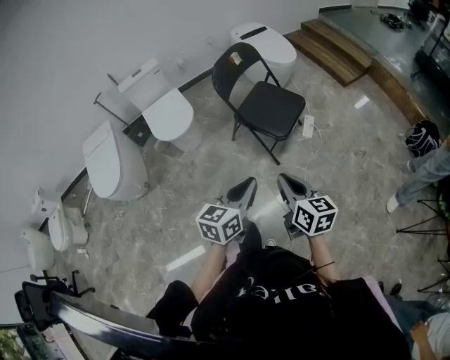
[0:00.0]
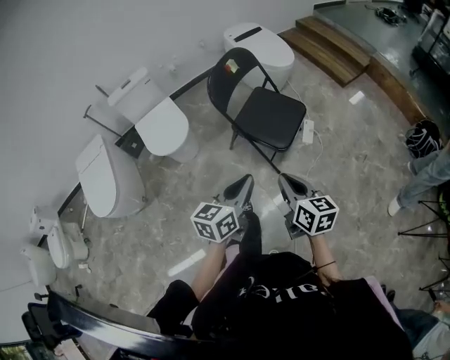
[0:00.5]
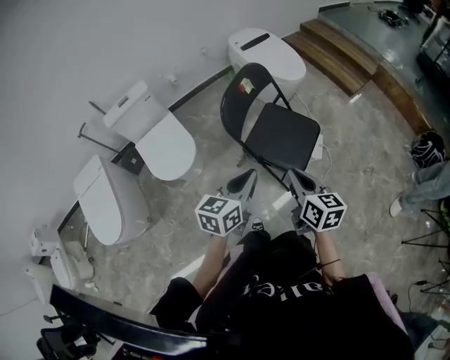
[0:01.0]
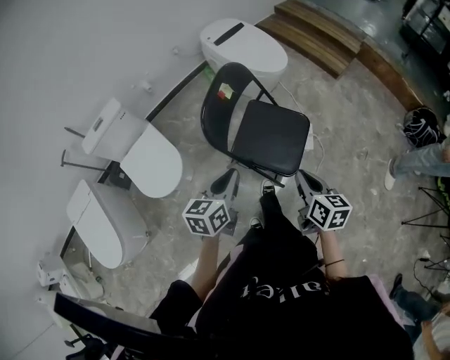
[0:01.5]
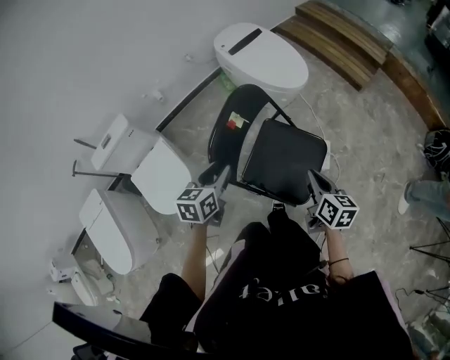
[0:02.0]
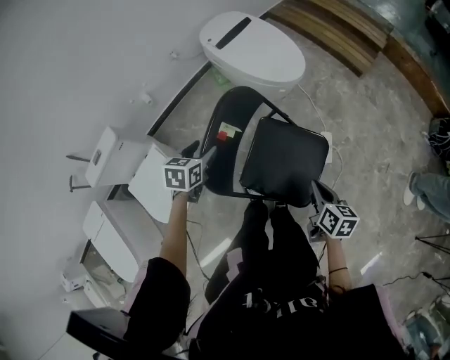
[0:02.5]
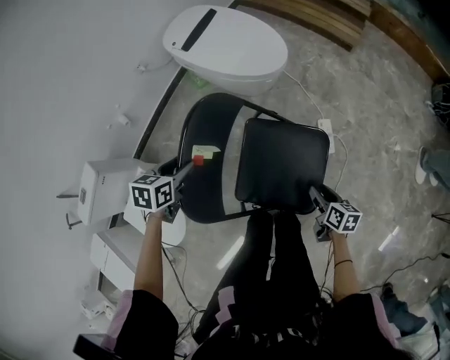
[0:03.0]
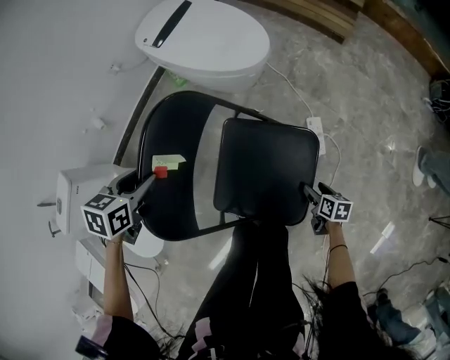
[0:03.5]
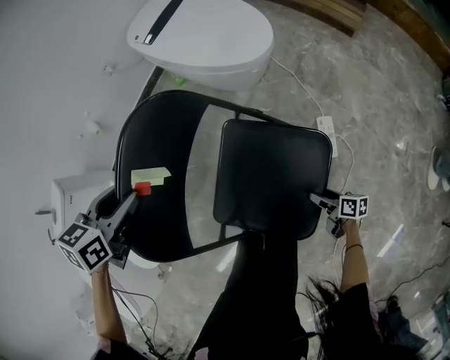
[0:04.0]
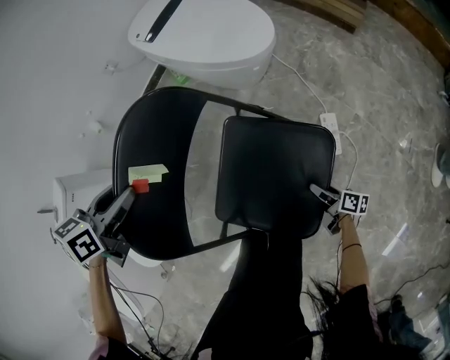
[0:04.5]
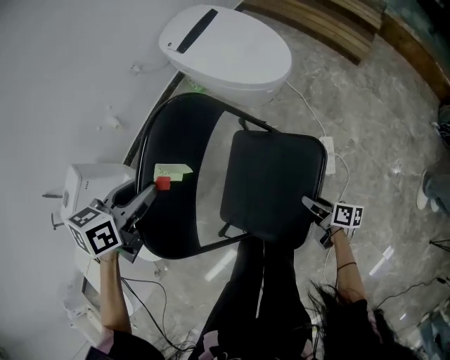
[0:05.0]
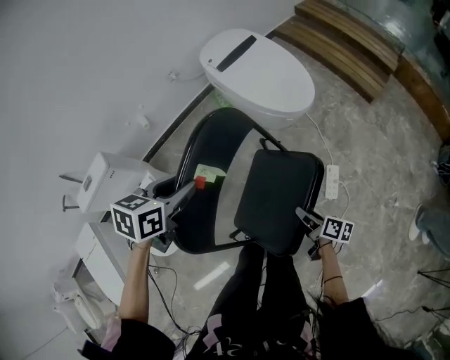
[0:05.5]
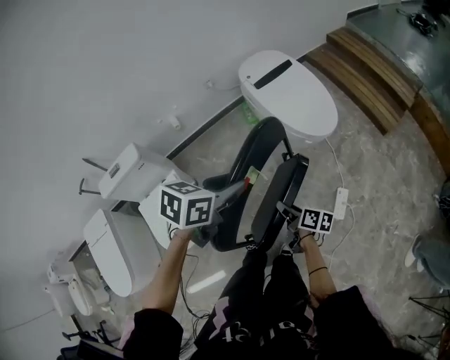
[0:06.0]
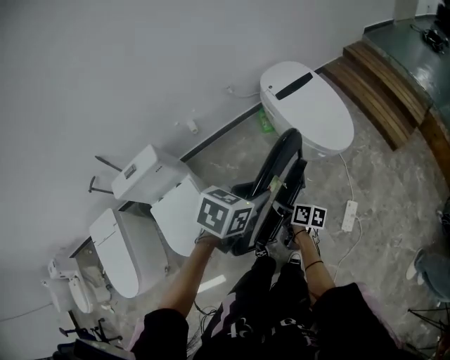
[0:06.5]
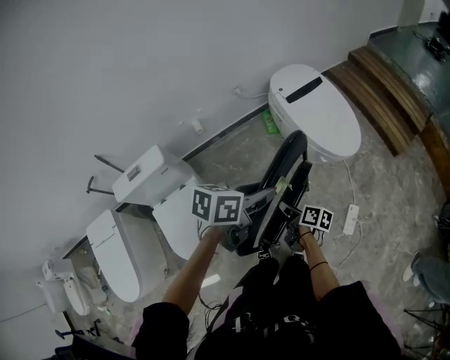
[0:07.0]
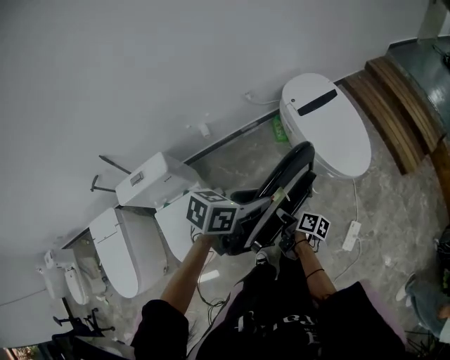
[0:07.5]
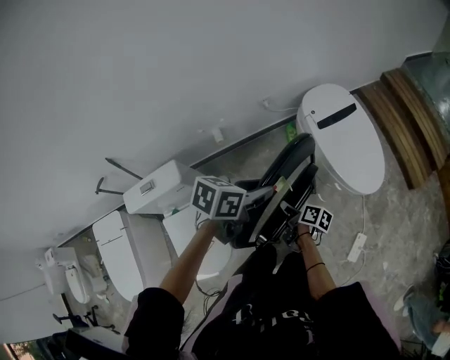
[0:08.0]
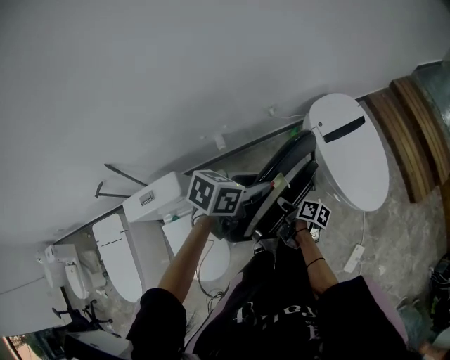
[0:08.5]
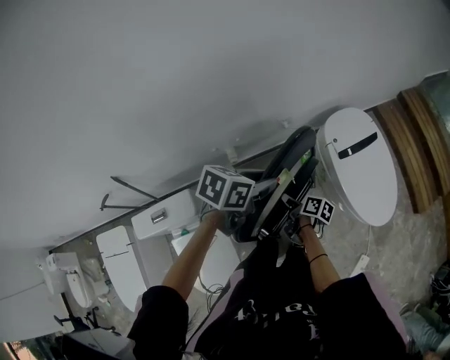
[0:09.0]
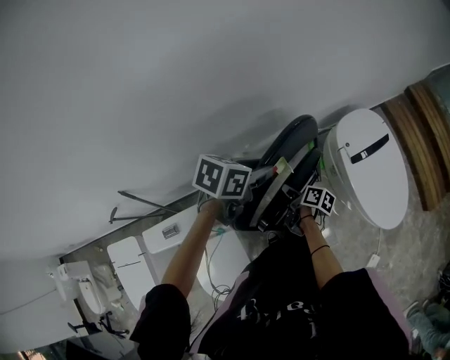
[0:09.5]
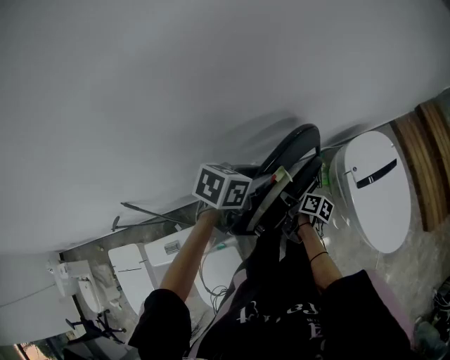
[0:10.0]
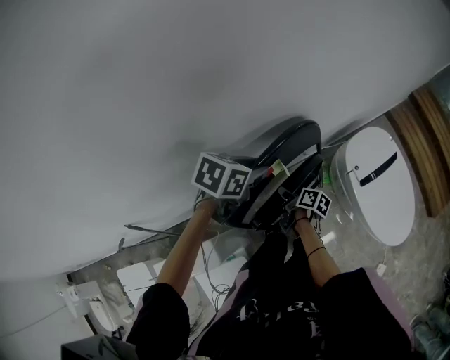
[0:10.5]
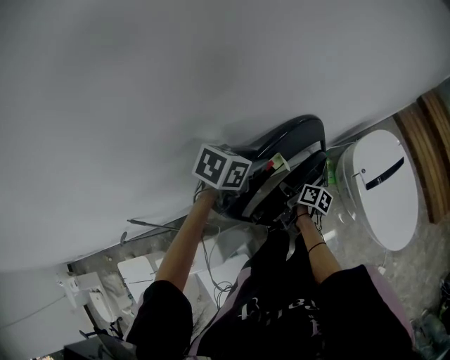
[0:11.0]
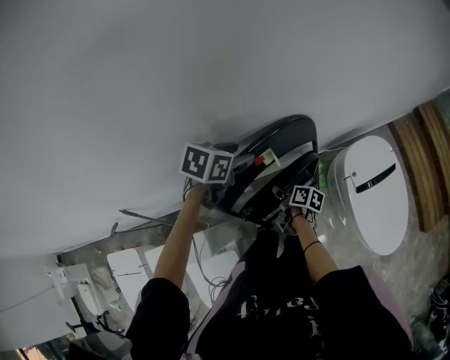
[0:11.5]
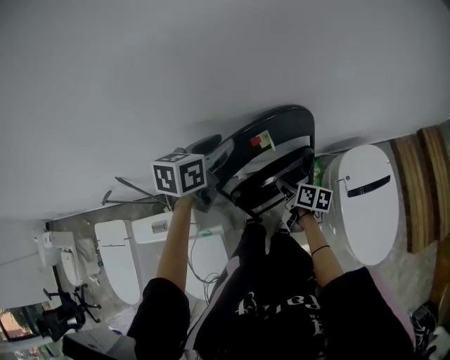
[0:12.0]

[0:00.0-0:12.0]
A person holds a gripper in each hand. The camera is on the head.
0:00.0 to 0:02.0: The pair of grippers is taken forward, roughly 60 cm. The right gripper rotates about 20 degrees. Meanwhile the left gripper opens.
0:02.0 to 0:04.0: The left gripper heads forward and downward, covering some 25 cm, and turns by some 30 degrees. The right gripper travels downward by approximately 50 cm, rotates roughly 40 degrees, and opens up.
0:04.0 to 0:06.0: The left gripper shifts roughly 20 cm upward. Meanwhile the right gripper goes some 40 cm upward and to the left, and closes.
0:06.0 to 0:08.0: The right gripper is displaced to the left and forward by some 30 cm. The left gripper travels forward and to the left by roughly 30 cm.
0:08.0 to 0:10.0: Both grippers are carried forward and to the left, some 40 cm.
0:10.0 to 0:12.0: The right gripper shifts about 5 cm upward, and rotates approximately 30 degrees. The left gripper moves about 10 cm, and changes its angle by about 30 degrees.

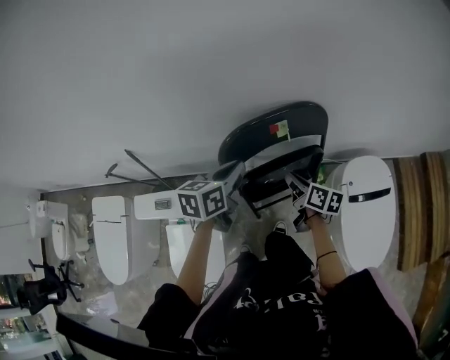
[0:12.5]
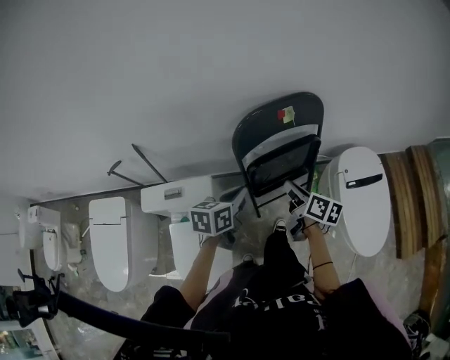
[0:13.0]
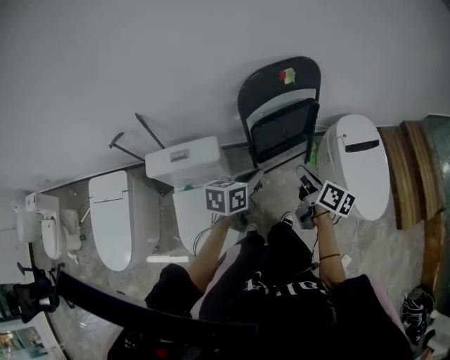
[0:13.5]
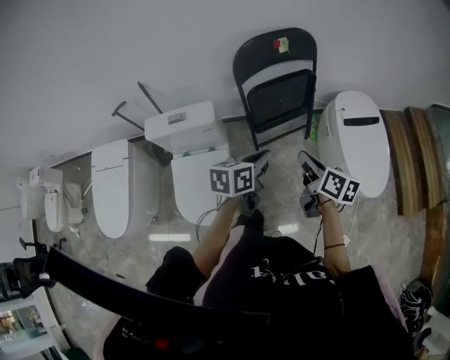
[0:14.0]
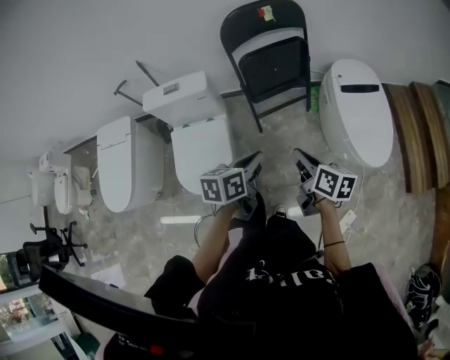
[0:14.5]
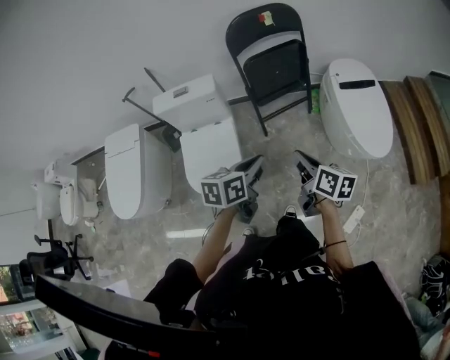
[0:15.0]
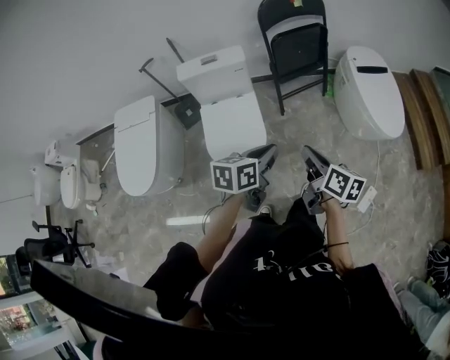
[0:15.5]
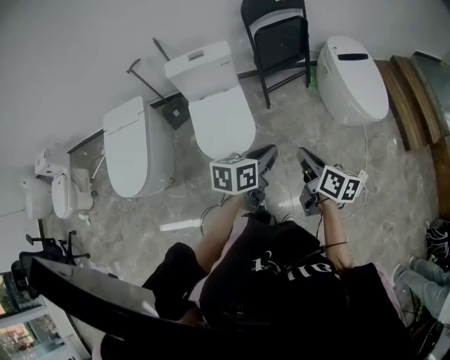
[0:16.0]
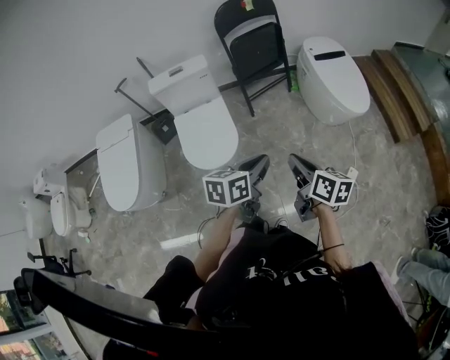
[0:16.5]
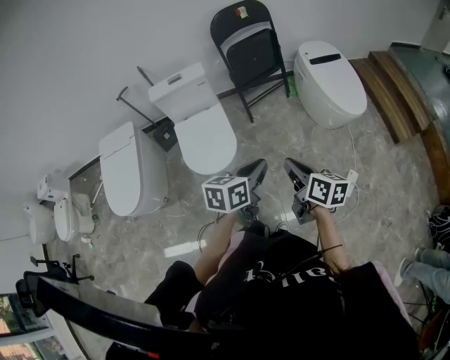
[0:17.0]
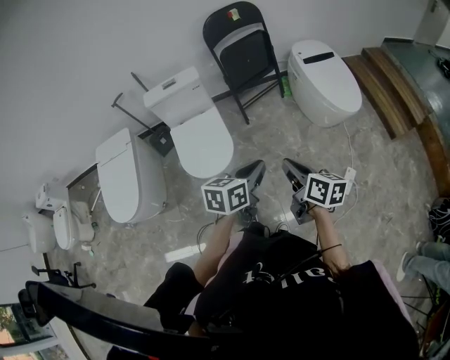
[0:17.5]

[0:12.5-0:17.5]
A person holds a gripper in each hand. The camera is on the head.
0:12.5 to 0:15.0: The pair of grippers is taken backward, roughly 60 cm.
0:15.0 to 0:17.5: Both grippers move backward, some 25 cm.

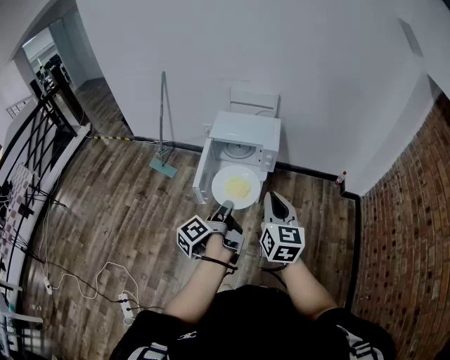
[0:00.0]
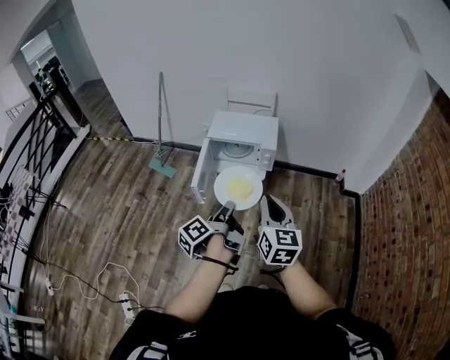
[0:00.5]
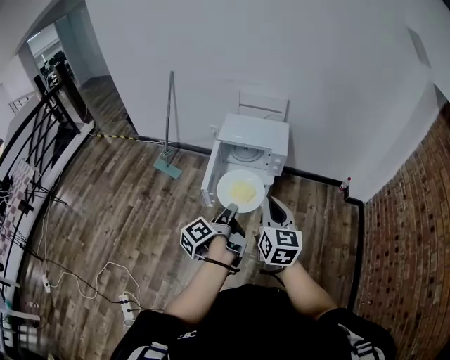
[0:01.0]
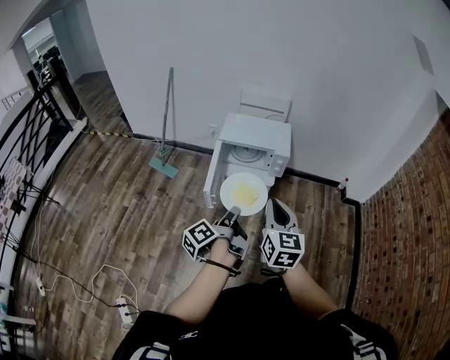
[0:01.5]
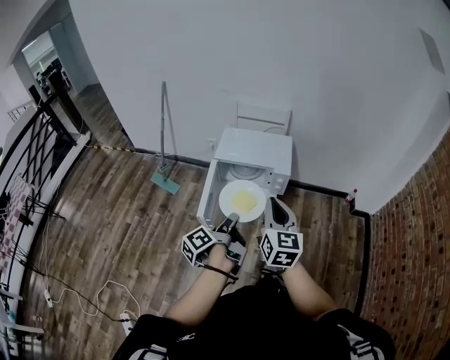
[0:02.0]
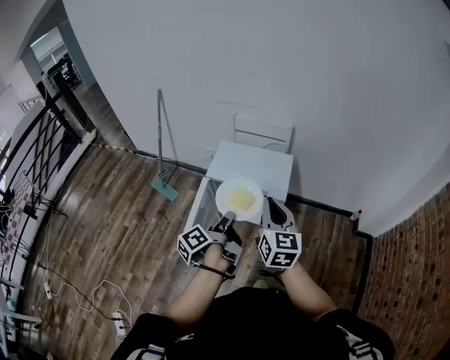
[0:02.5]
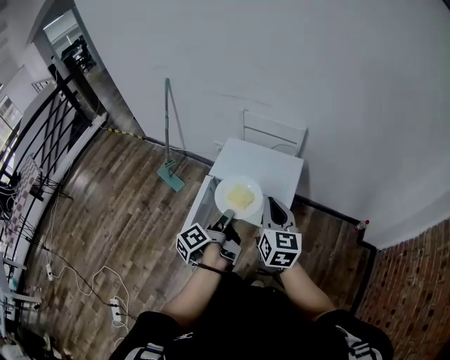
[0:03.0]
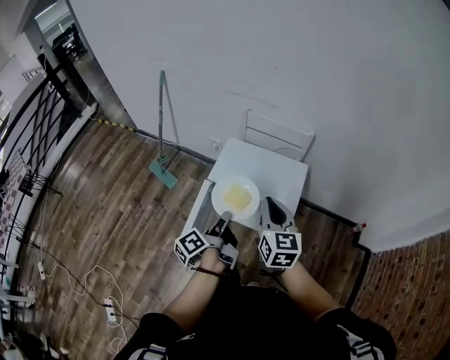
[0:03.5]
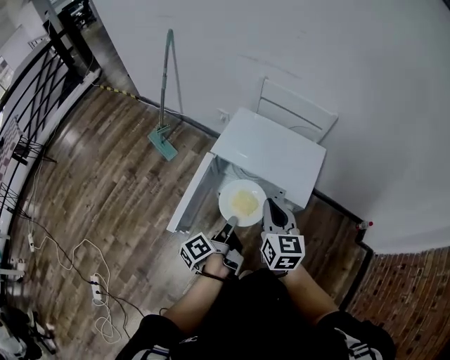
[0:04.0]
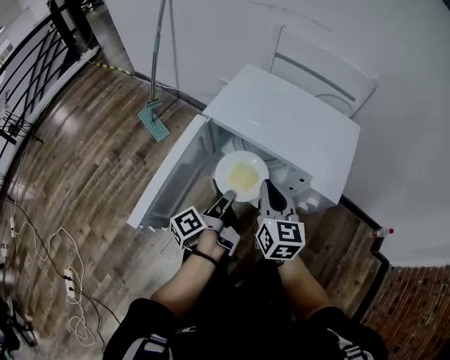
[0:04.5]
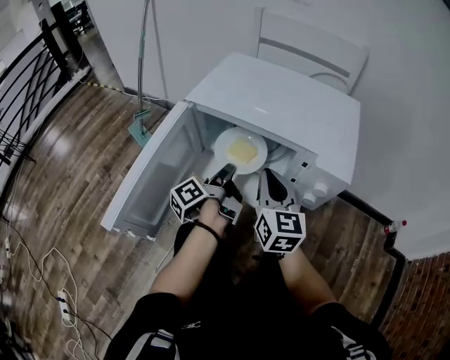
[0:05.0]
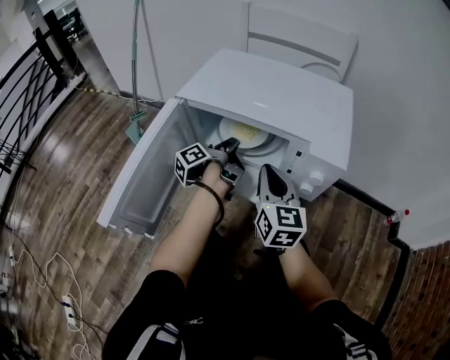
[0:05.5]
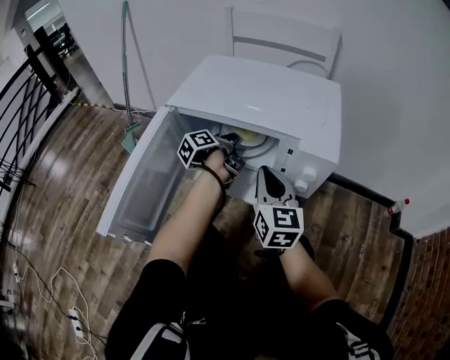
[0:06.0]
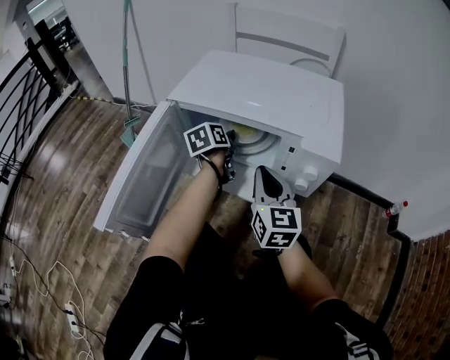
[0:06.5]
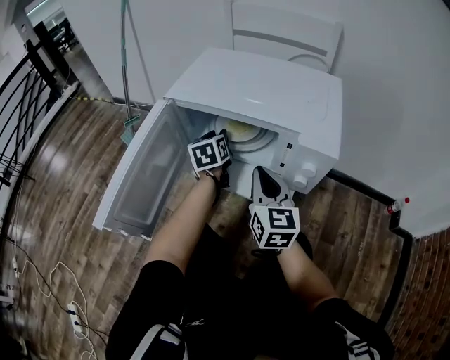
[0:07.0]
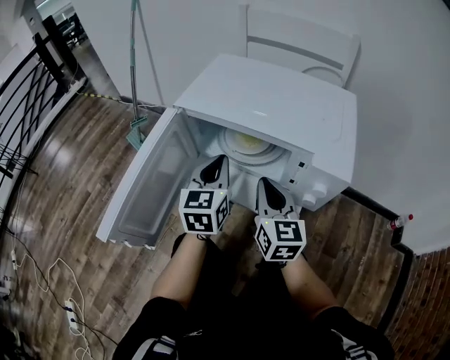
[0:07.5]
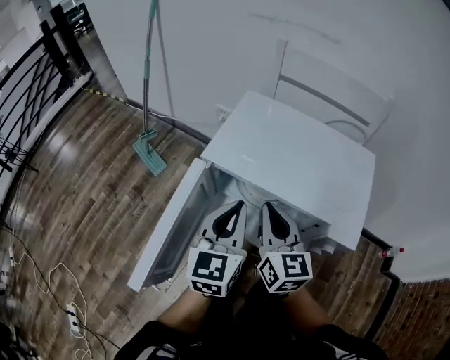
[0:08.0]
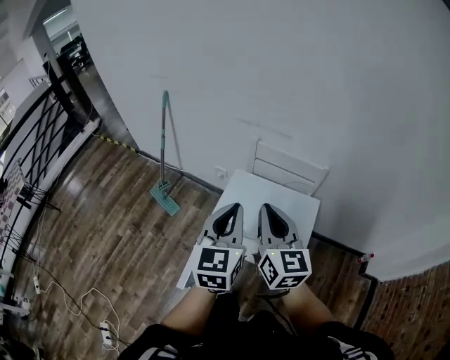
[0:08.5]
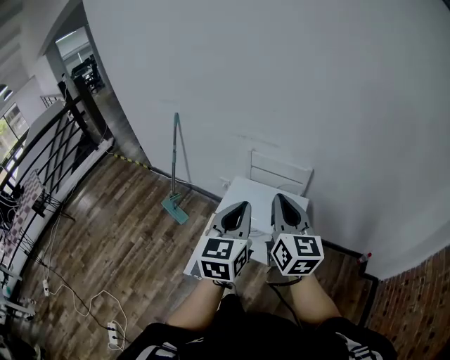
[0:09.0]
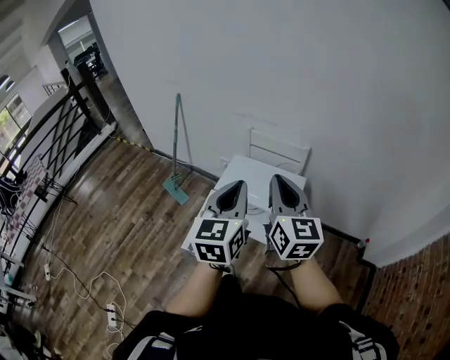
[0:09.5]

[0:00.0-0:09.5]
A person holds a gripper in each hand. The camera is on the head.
0:00.0 to 0:02.0: The grippers both shift forward by some 15 cm.
0:02.0 to 0:04.0: The grippers both shift forward and downward by some 30 cm. The right gripper turns by about 20 degrees.
0:04.0 to 0:05.5: The right gripper shifts approximately 25 cm downward, while the left gripper shifts approximately 35 cm downward and forward.
0:05.5 to 0:07.5: The left gripper travels upward and backward by roughly 10 cm, rolls clockwise, seen from behind, by some 80 degrees, and opens, then closes once more.
0:07.5 to 0:09.5: The two grippers go approximately 60 cm upward.
